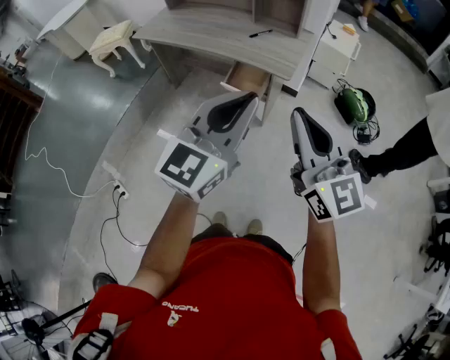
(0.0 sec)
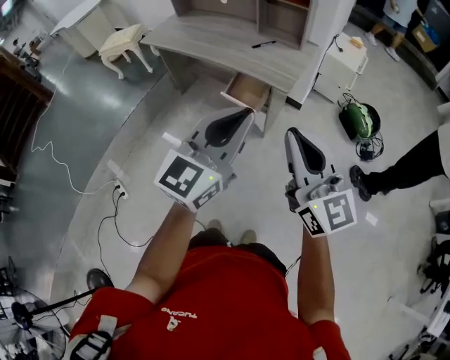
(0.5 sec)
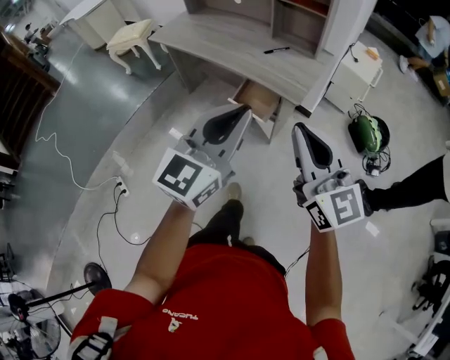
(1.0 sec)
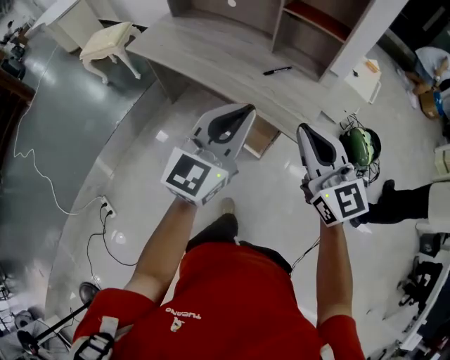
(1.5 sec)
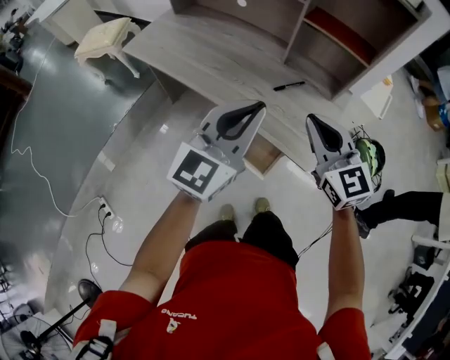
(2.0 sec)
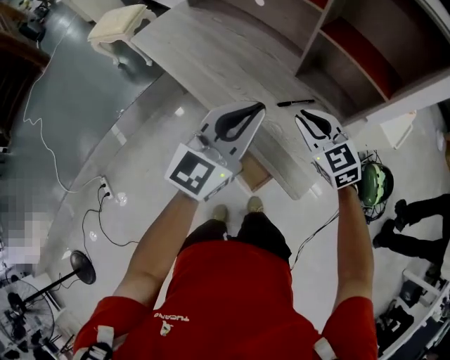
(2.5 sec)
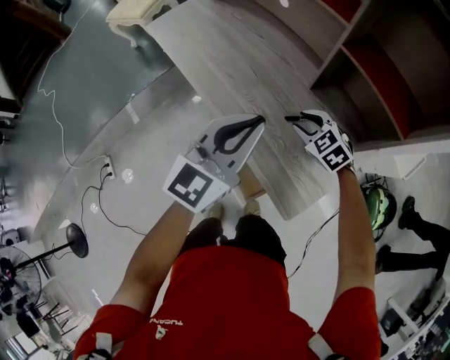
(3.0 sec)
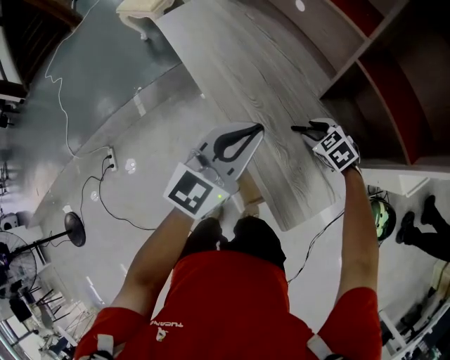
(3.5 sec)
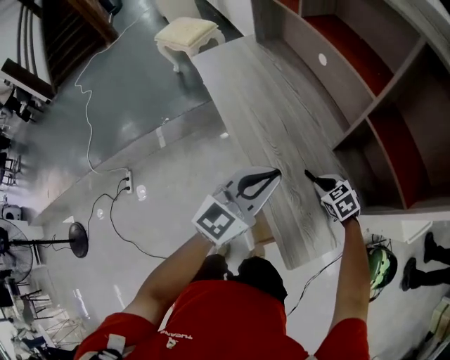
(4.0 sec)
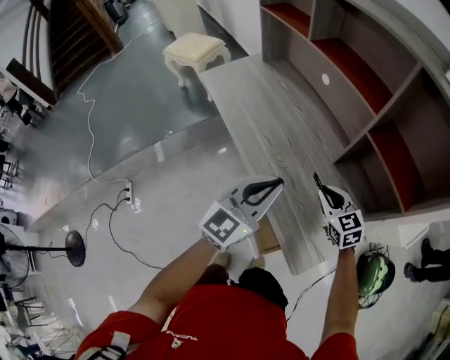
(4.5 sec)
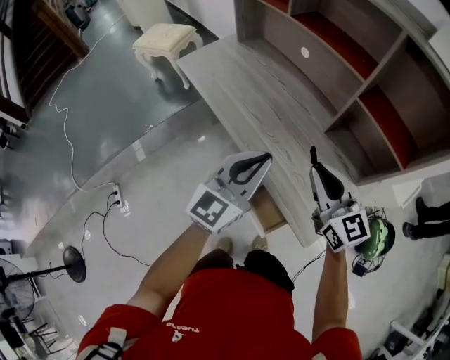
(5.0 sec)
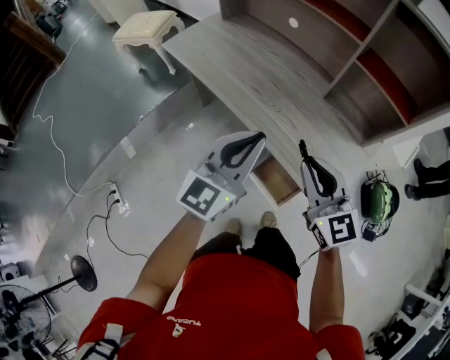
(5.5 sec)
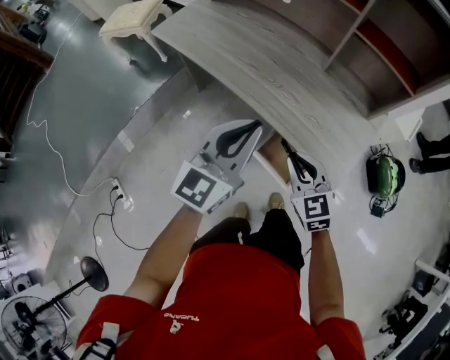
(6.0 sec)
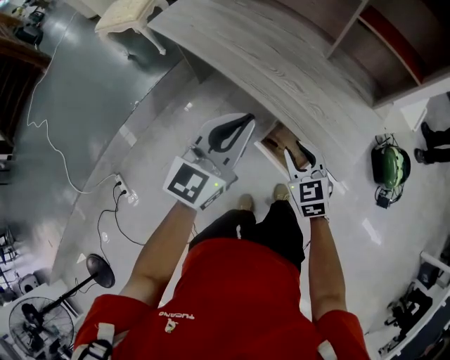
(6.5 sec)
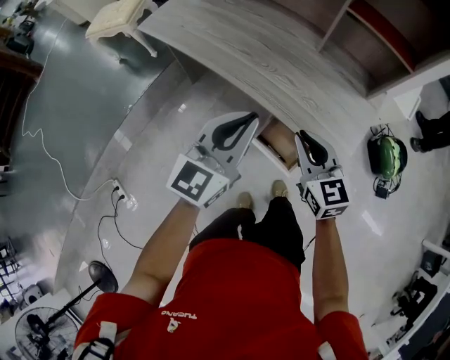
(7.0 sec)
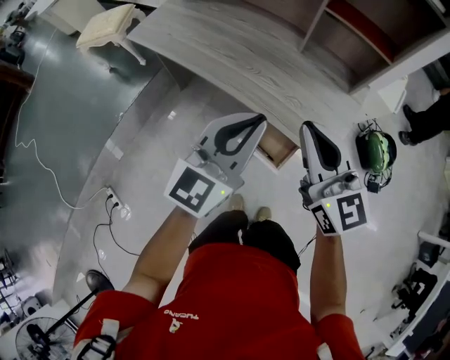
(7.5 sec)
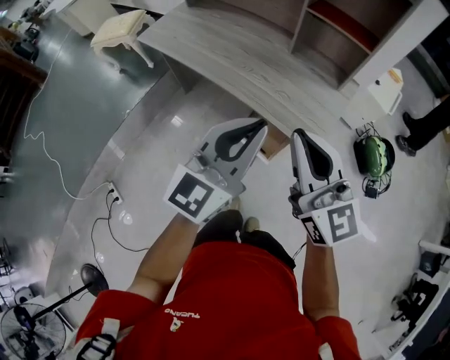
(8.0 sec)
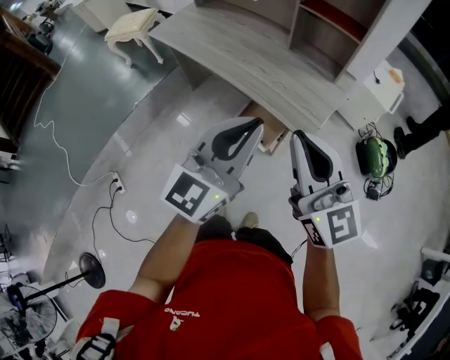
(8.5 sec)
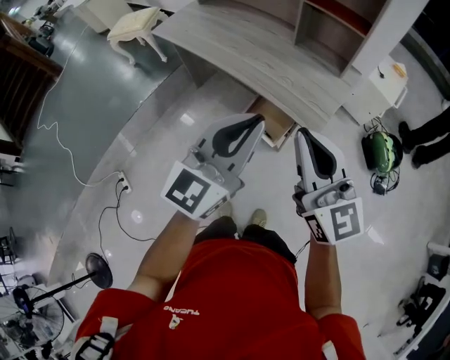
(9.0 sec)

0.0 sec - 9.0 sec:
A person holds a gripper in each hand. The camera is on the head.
0.0 sec - 2.0 sec: The grippers both shift forward by approximately 40 cm. The right gripper changes its angle by roughly 30 degrees.
2.0 sec - 4.5 sec: The left gripper ends up some 10 cm from where it was, and turns by roughly 20 degrees, while the right gripper swivels some 30 degrees, and opens and closes again.
4.5 sec - 7.0 sec: The left gripper is displaced backward and to the left by about 10 cm, while the right gripper goes up and down, approximately 20 cm each way, reversing 2 times, and turns by roughly 30 degrees.
7.0 sec - 9.0 sec: The left gripper travels backward, upward and to the right by roughly 25 cm; the right gripper is displaced upward and backward by about 30 cm, and changes its angle by some 30 degrees.

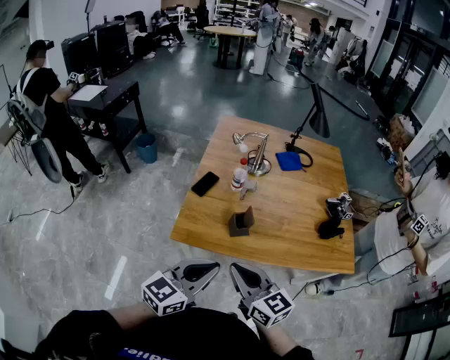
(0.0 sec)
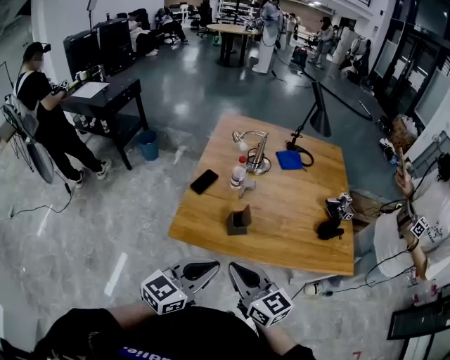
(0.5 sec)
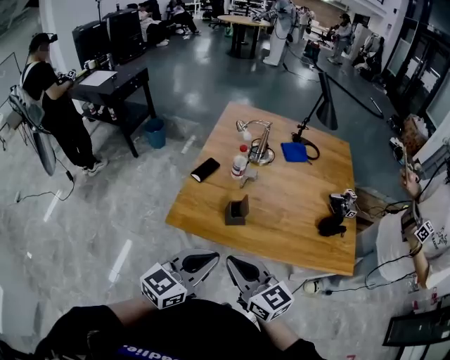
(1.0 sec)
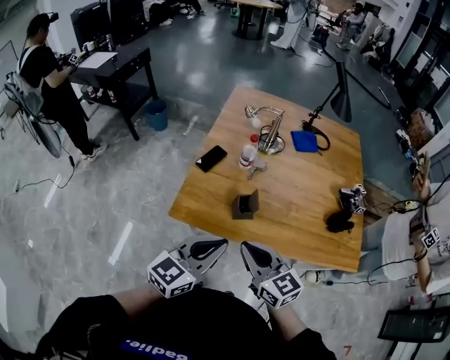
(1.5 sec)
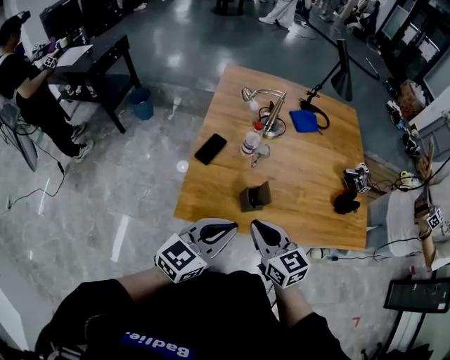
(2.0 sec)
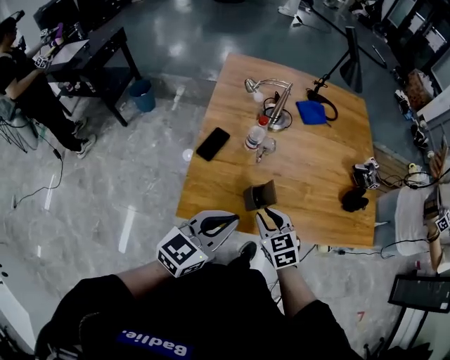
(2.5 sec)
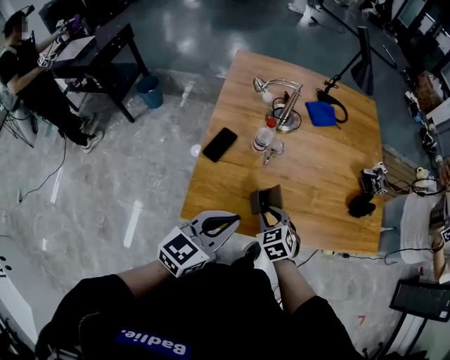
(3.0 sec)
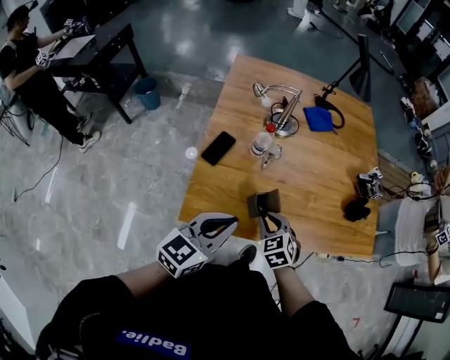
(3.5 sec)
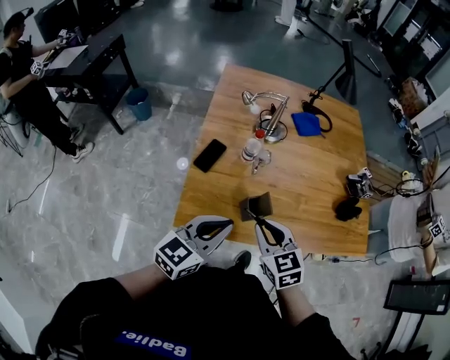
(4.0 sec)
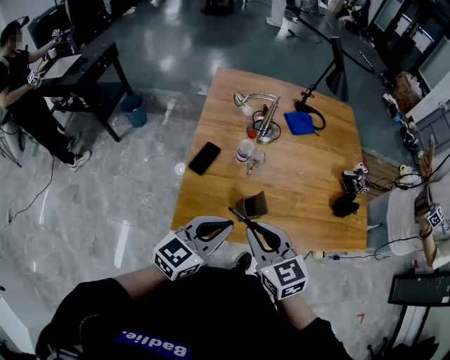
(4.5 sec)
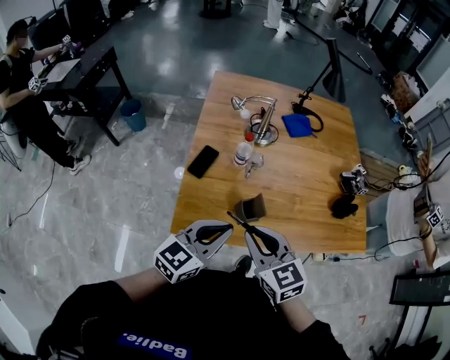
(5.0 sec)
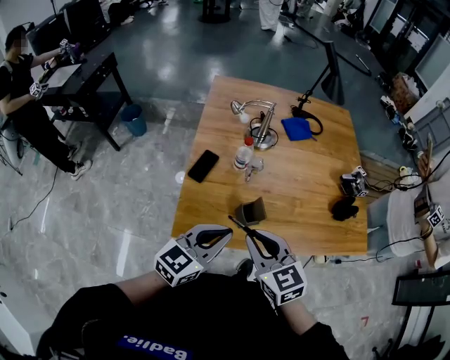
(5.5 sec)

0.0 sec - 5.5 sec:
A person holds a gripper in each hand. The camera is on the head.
0.0 sec - 2.0 sec: The right gripper travels forward and downward by some 15 cm, while the left gripper shifts about 10 cm forward.
2.0 sec - 3.5 sec: The left gripper travels forward by about 5 cm. Meanwhile the right gripper heads downward and forward, covering roughly 15 cm, and rotates approximately 40 degrees.
3.5 sec - 5.5 sec: The right gripper is displaced upward by about 15 cm, and rotates about 30 degrees.

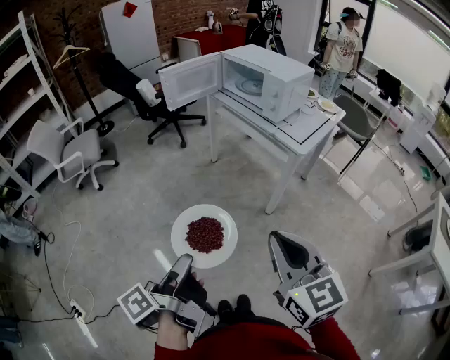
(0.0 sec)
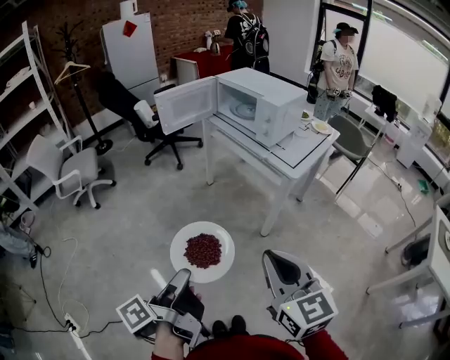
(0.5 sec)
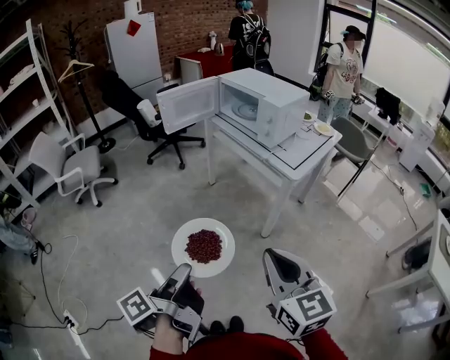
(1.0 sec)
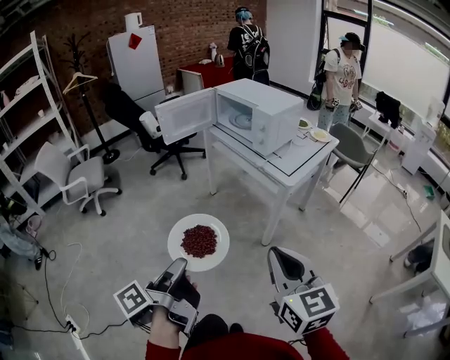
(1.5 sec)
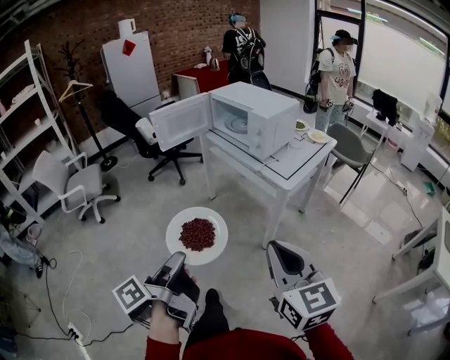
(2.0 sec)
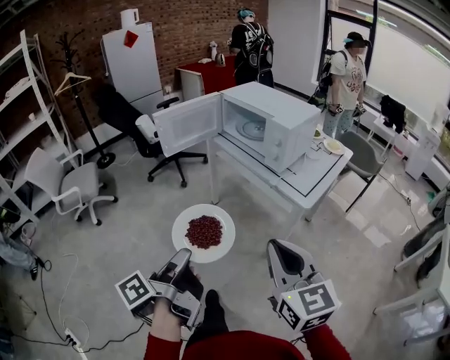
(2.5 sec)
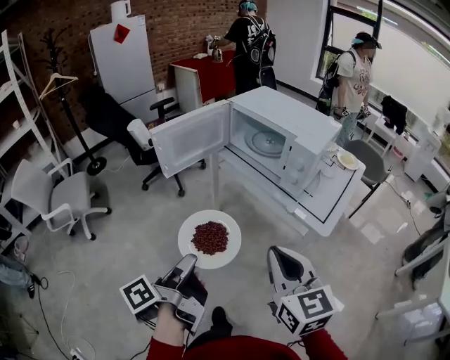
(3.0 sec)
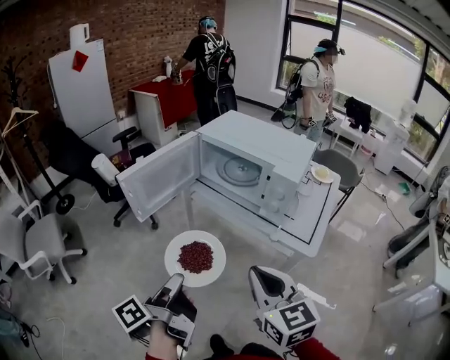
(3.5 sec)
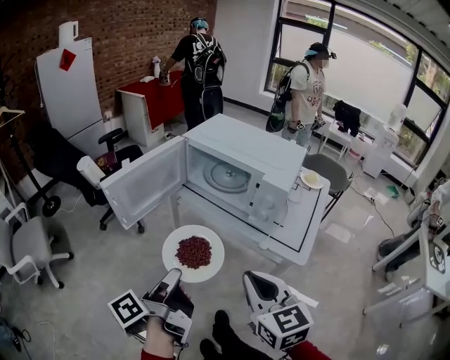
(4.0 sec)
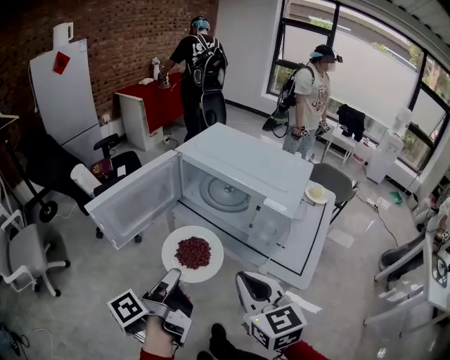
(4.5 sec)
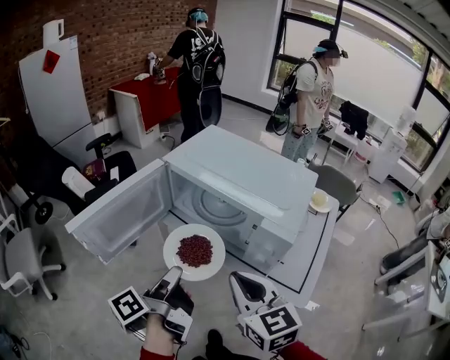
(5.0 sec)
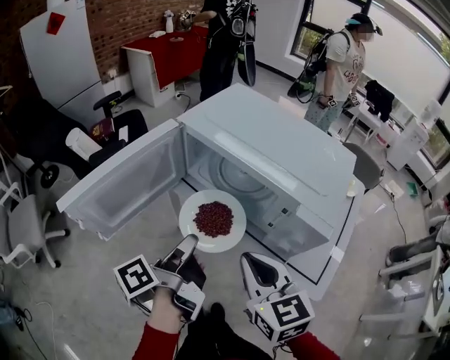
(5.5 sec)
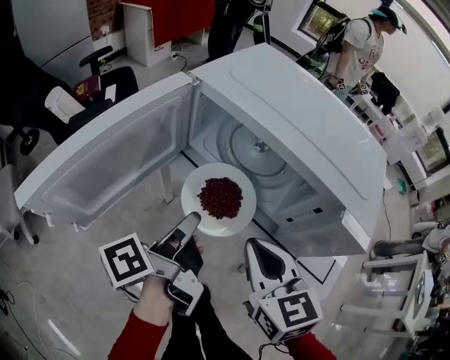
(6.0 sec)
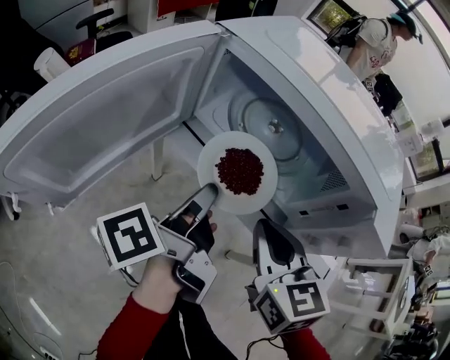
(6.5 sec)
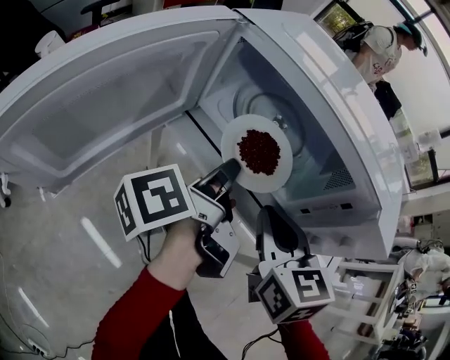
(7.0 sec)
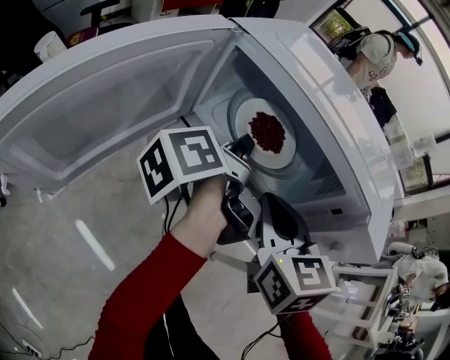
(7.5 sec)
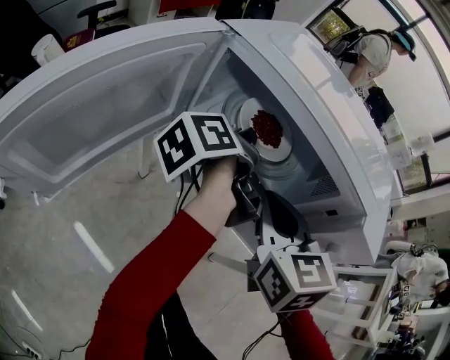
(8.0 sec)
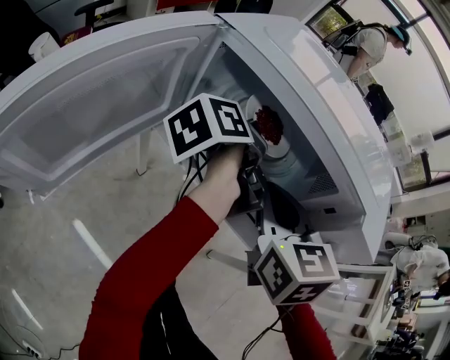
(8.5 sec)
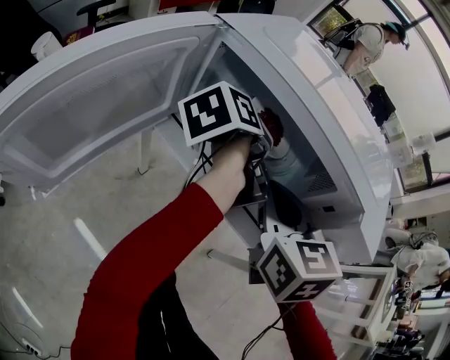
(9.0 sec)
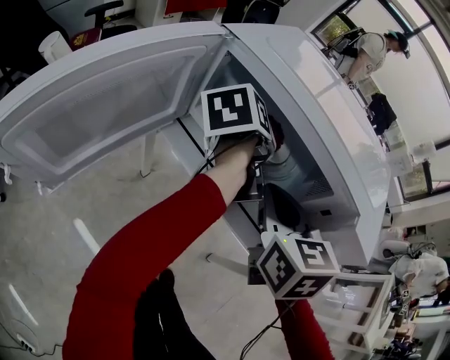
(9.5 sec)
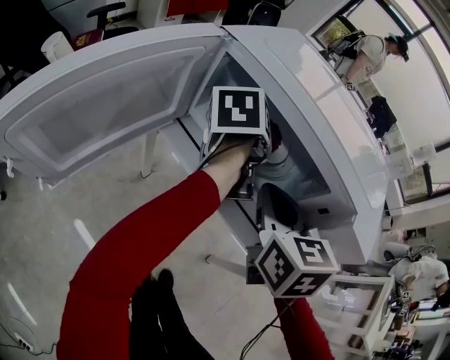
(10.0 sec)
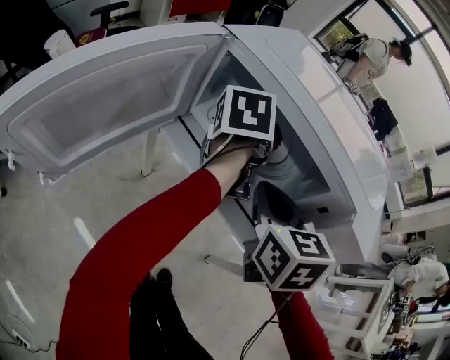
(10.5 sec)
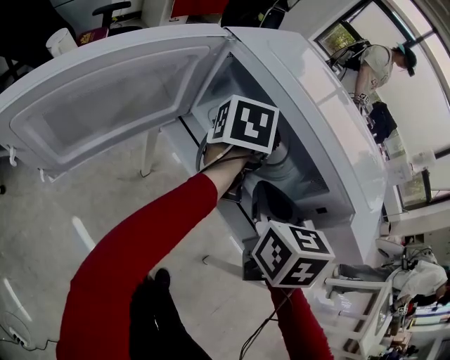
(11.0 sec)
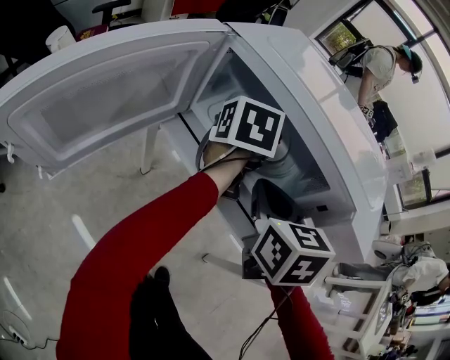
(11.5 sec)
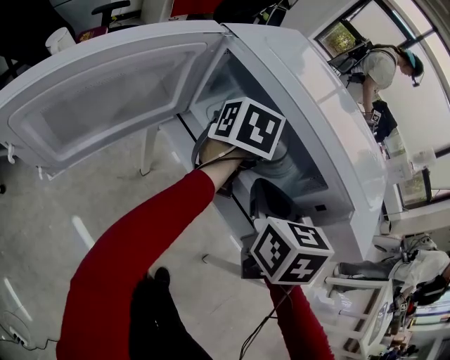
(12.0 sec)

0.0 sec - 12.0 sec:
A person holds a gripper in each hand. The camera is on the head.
0.0 sec - 2.0 sec: The right gripper goes about 10 cm to the right, while the left gripper is displaced forward and to the right by about 10 cm.
2.0 sec - 4.0 sec: The left gripper shifts about 35 cm forward; the right gripper heads forward and to the left, covering roughly 30 cm.
4.0 sec - 6.0 sec: The grippers both shift forward by some 25 cm.
6.0 sec - 8.0 sec: The left gripper travels forward by approximately 15 cm; the right gripper goes some 10 cm forward.
8.0 sec - 10.0 sec: The left gripper swivels roughly 40 degrees.
10.0 sec - 12.0 sec: The left gripper changes its angle by some 30 degrees.
